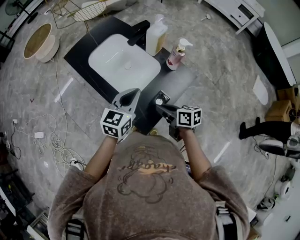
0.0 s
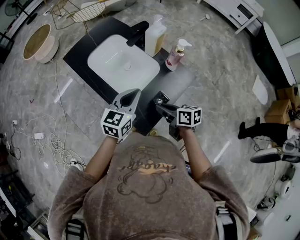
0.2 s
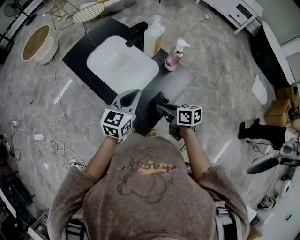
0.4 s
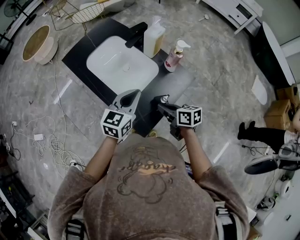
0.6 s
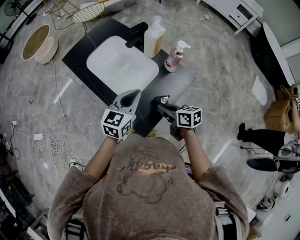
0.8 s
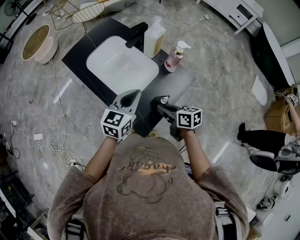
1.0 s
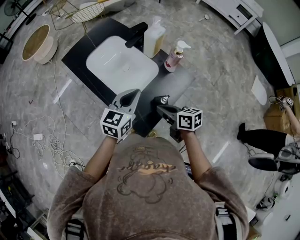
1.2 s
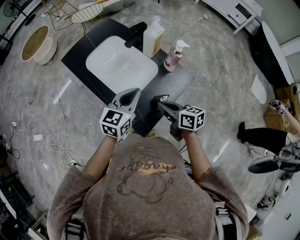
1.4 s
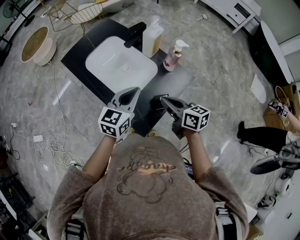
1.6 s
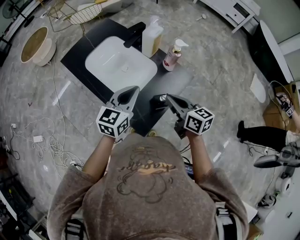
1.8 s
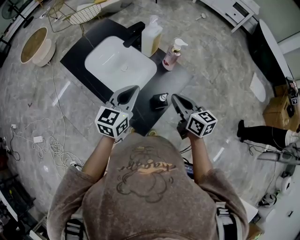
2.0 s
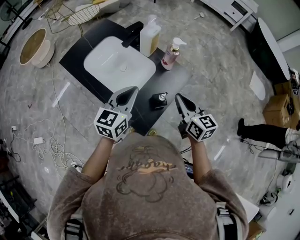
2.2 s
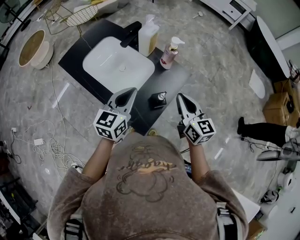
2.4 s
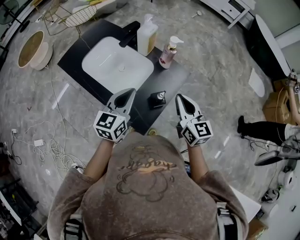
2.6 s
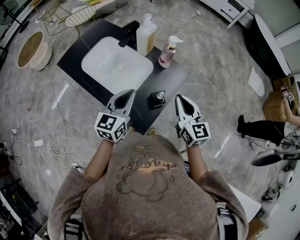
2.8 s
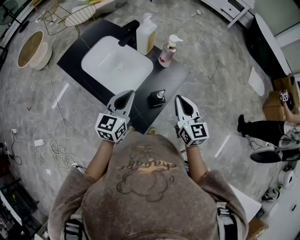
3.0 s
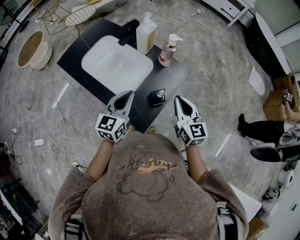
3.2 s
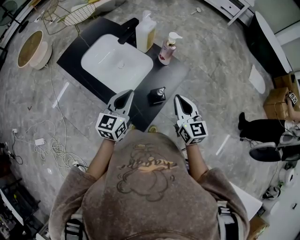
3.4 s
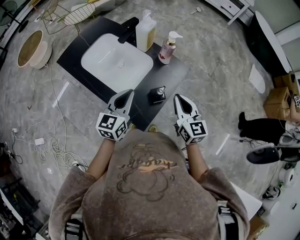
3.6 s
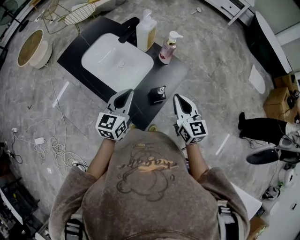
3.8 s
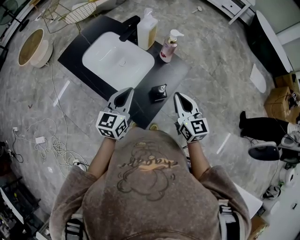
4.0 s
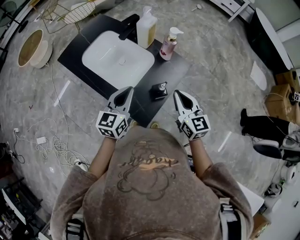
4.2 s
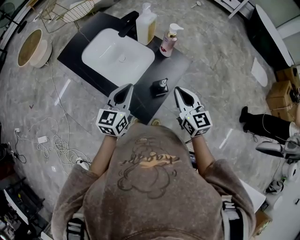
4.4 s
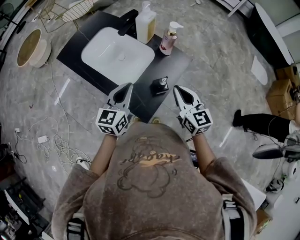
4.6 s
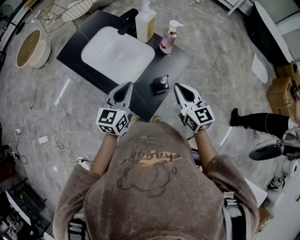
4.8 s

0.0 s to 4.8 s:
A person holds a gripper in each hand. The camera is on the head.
0.0 to 1.6 s: The right gripper travels upward by about 5 cm.
1.6 to 3.2 s: The right gripper heads to the right, covering approximately 5 cm, and swivels roughly 40 degrees.
3.2 to 4.8 s: The grippers stay close to where they were, moving slightly.

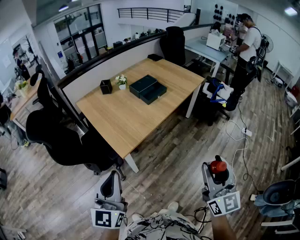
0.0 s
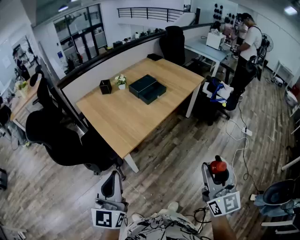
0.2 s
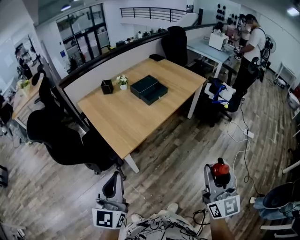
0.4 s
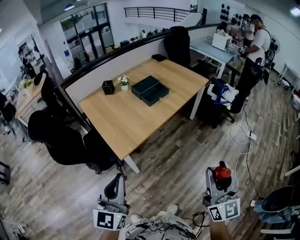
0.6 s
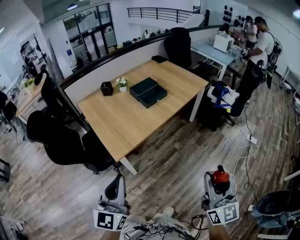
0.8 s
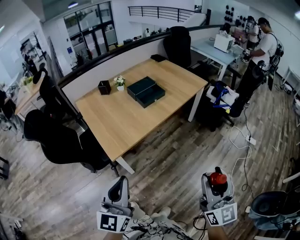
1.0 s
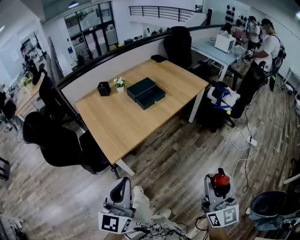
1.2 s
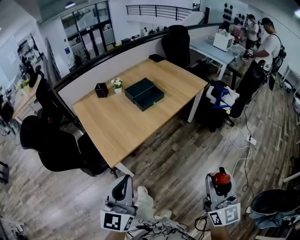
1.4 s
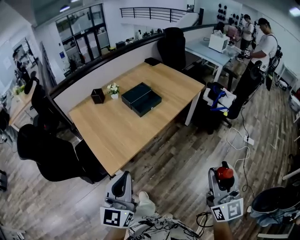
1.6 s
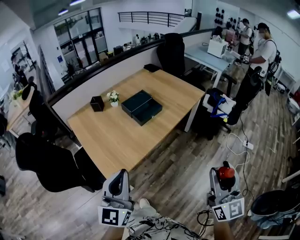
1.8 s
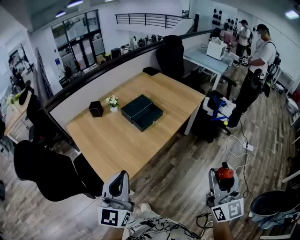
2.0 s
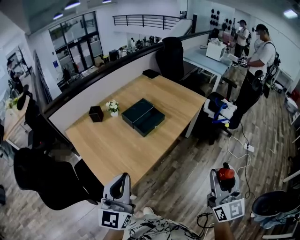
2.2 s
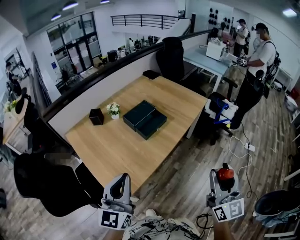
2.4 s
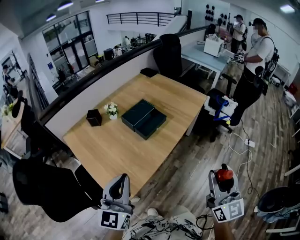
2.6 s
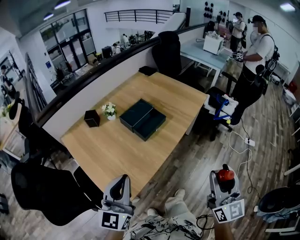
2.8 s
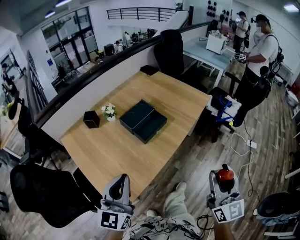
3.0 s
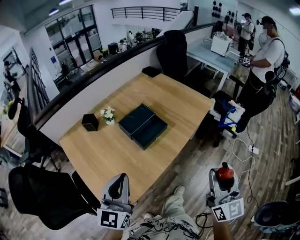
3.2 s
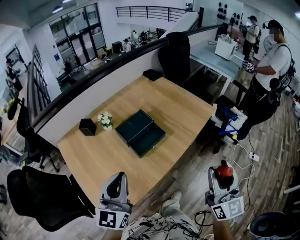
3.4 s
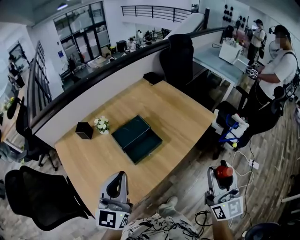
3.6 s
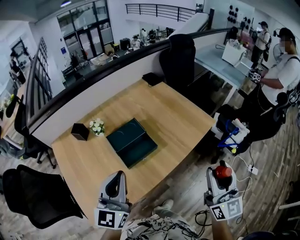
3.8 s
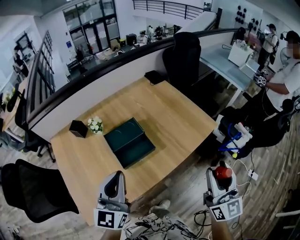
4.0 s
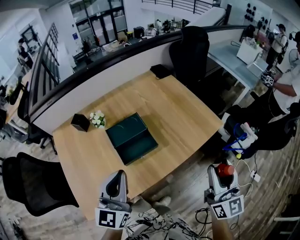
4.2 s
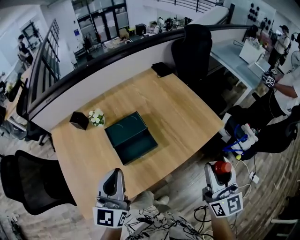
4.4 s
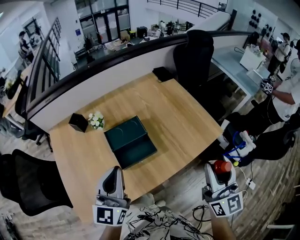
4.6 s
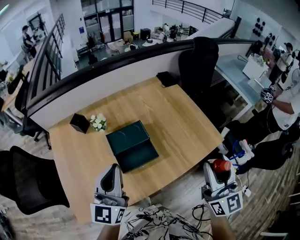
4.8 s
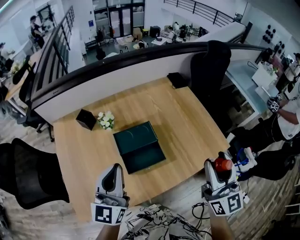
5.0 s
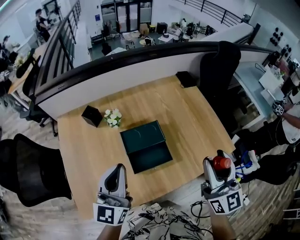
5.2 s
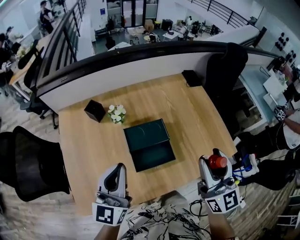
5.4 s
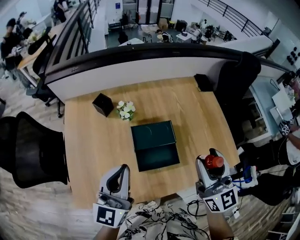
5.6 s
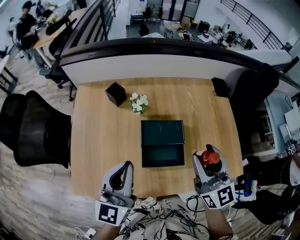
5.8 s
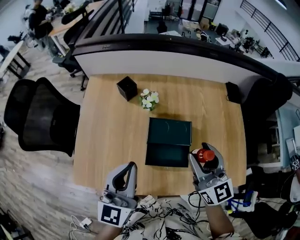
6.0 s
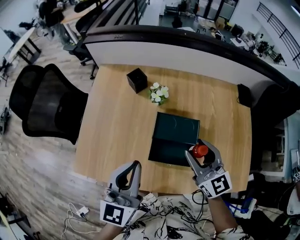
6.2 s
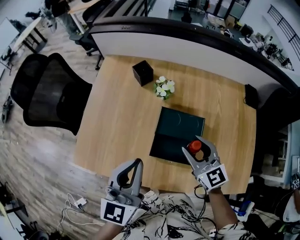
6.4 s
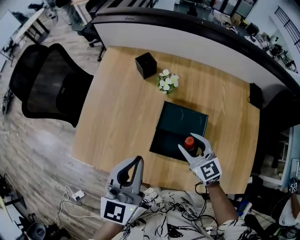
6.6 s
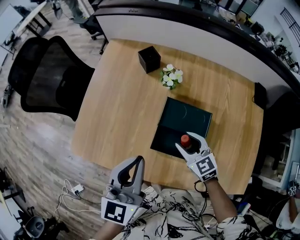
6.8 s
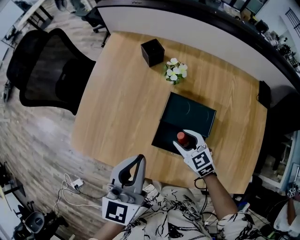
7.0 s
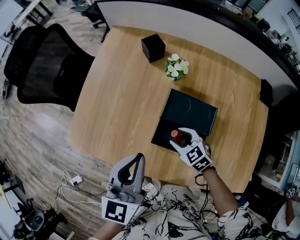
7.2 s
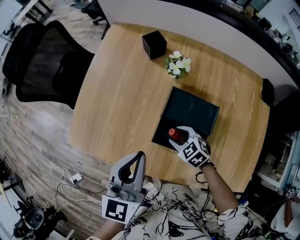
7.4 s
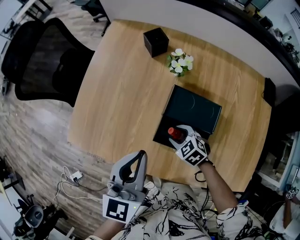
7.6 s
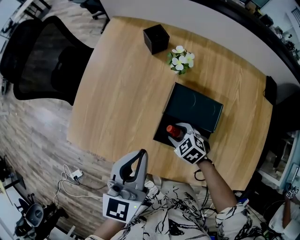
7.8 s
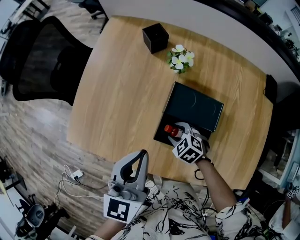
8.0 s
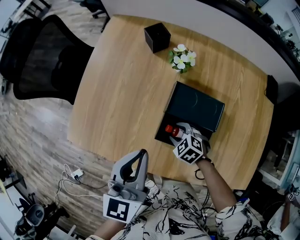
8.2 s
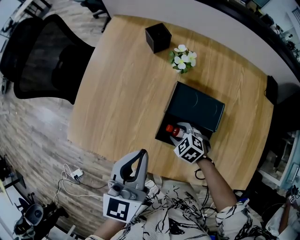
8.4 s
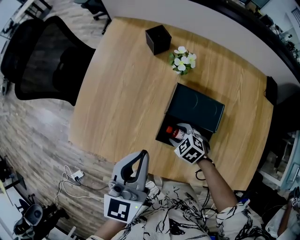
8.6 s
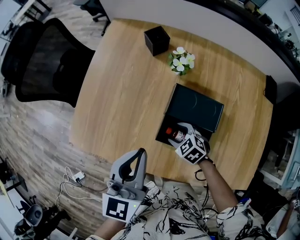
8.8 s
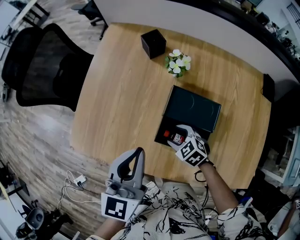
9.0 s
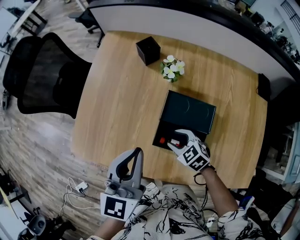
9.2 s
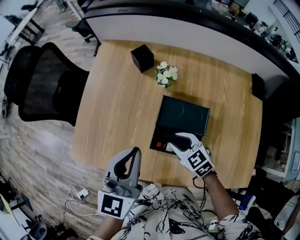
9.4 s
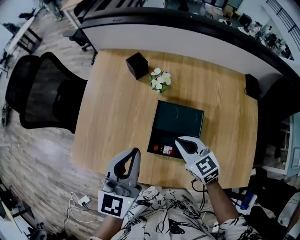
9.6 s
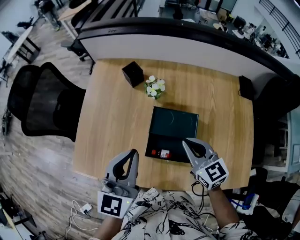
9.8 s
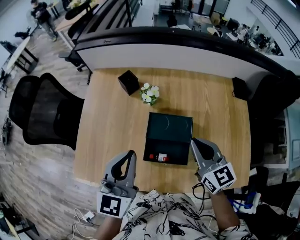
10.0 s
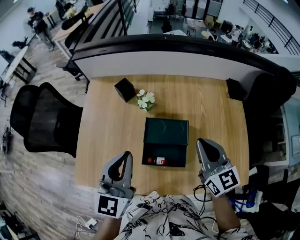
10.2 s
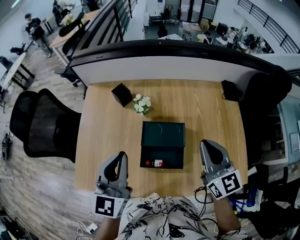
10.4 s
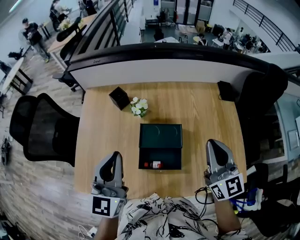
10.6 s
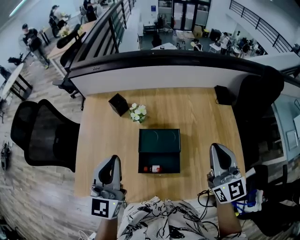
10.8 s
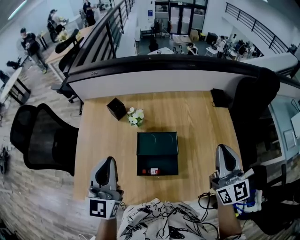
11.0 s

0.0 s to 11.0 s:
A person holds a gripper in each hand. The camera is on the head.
0.0 to 1.6 s: Both grippers travel together forward and to the right, roughly 15 cm.
1.6 to 3.2 s: The two grippers go about 25 cm forward.
3.2 to 4.8 s: The right gripper heads forward, covering roughly 30 cm, and turns by some 20 degrees. Meanwhile the left gripper heads forward and to the right, covering approximately 25 cm, and swivels about 20 degrees.
4.8 to 6.2 s: The left gripper changes place by about 10 cm, and swivels about 30 degrees. Meanwhile the right gripper moves approximately 35 cm, and swivels some 50 degrees.
6.2 to 7.8 s: The left gripper goes about 10 cm downward. Meanwhile the right gripper is displaced downward by roughly 30 cm, and angles its fingers downward, by some 50 degrees.
7.8 to 9.4 s: The left gripper shifts by approximately 5 cm, while the right gripper heads upward, covering approximately 10 cm, and rotates about 20 degrees.
9.4 to 11.0 s: The left gripper goes about 10 cm upward. The right gripper heads upward, covering some 30 cm, angles its fingers upward, by roughly 50 degrees, and closes up.

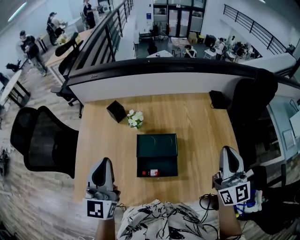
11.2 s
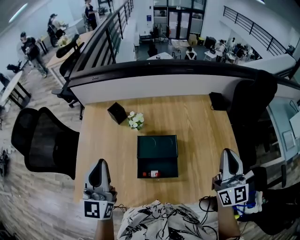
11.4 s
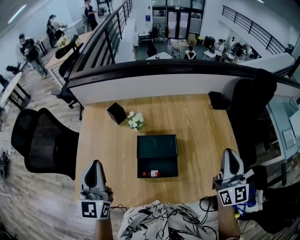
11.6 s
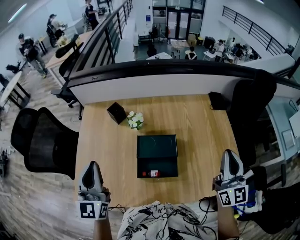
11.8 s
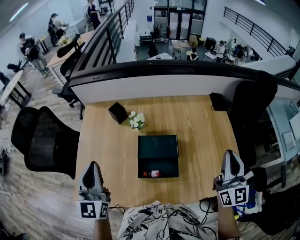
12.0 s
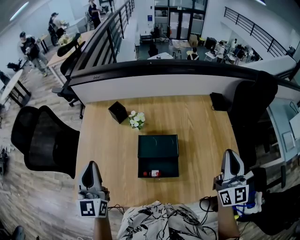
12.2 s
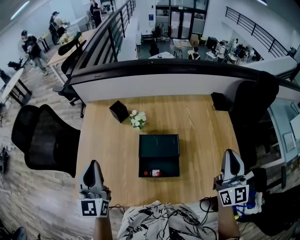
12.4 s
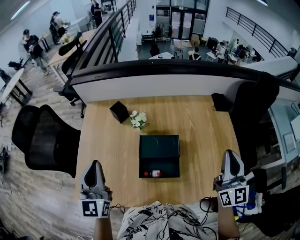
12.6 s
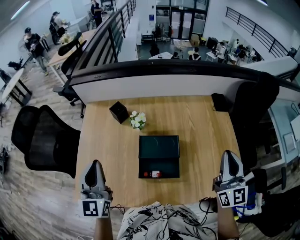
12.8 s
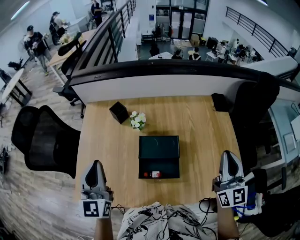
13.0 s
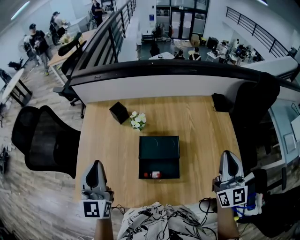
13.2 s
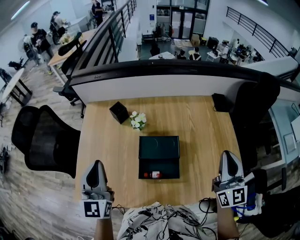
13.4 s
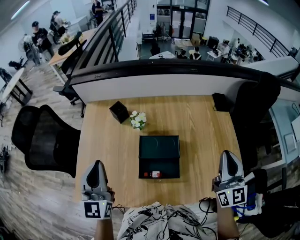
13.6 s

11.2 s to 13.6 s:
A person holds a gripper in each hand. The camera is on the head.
11.2 to 12.4 s: The left gripper shifts about 5 cm to the left.
12.4 to 13.6 s: The grippers move only a little.

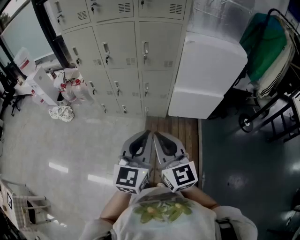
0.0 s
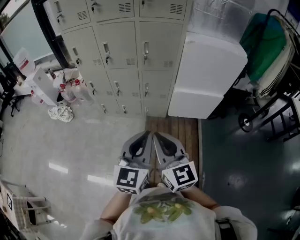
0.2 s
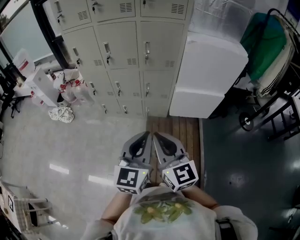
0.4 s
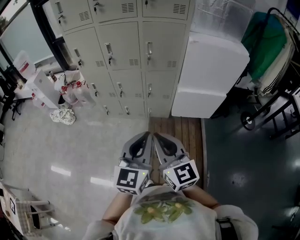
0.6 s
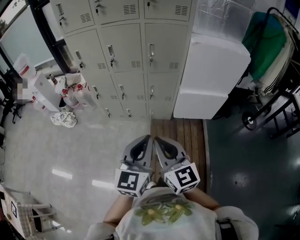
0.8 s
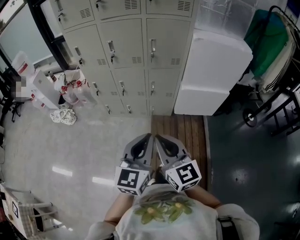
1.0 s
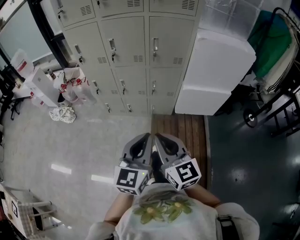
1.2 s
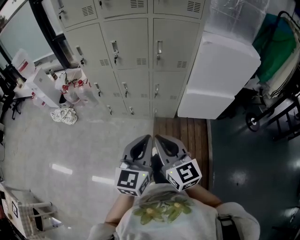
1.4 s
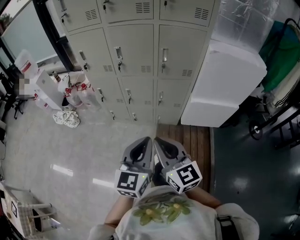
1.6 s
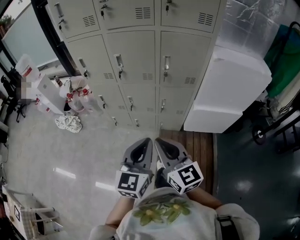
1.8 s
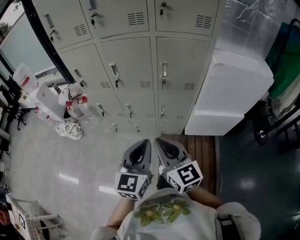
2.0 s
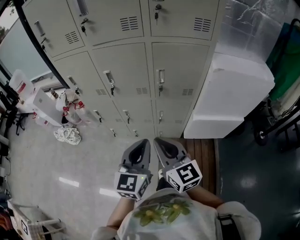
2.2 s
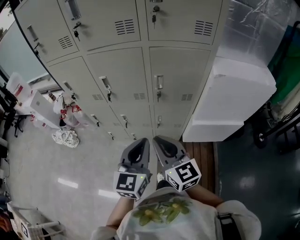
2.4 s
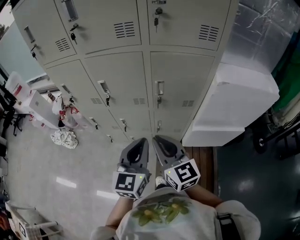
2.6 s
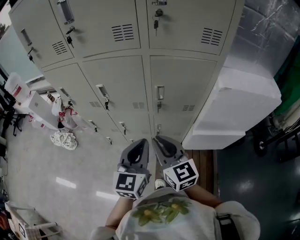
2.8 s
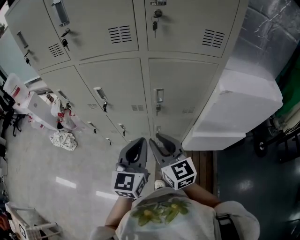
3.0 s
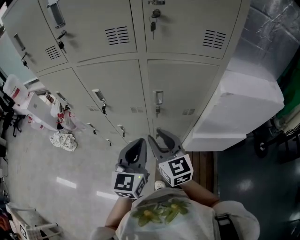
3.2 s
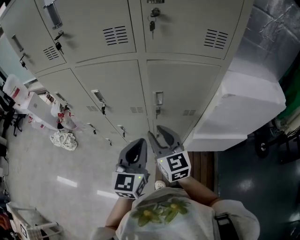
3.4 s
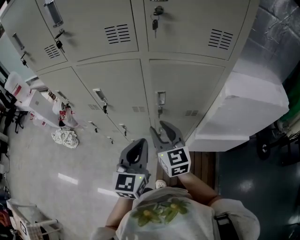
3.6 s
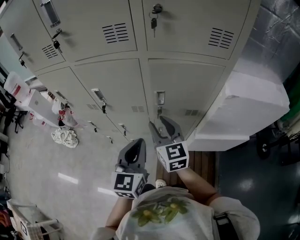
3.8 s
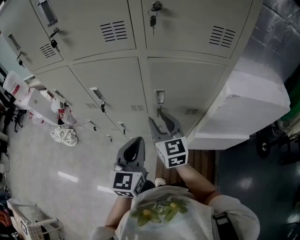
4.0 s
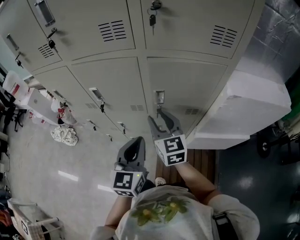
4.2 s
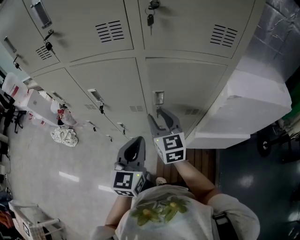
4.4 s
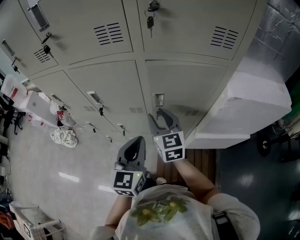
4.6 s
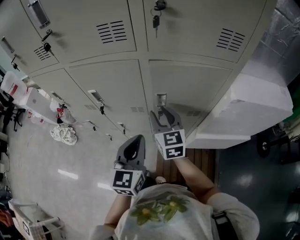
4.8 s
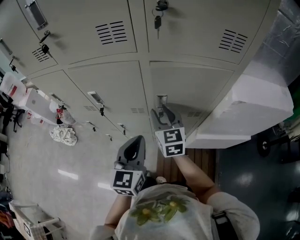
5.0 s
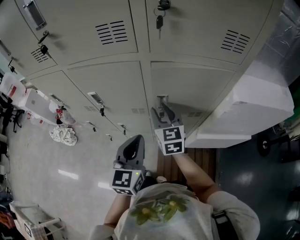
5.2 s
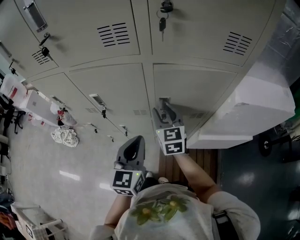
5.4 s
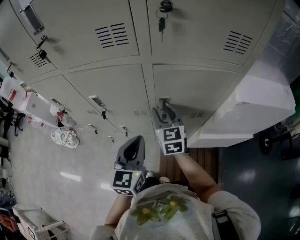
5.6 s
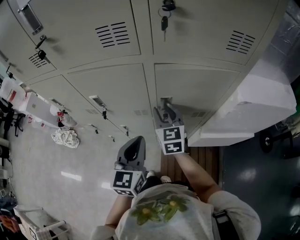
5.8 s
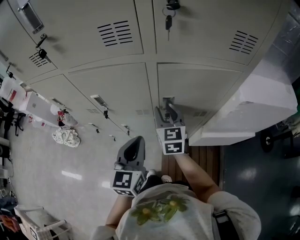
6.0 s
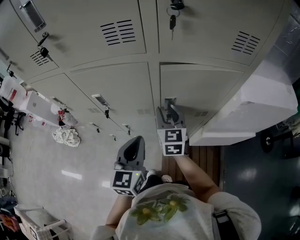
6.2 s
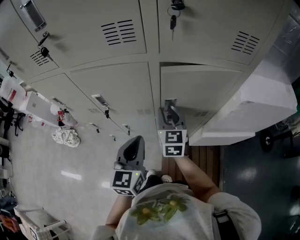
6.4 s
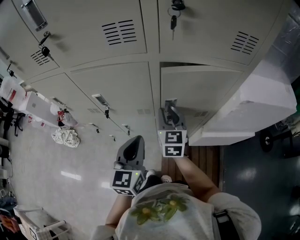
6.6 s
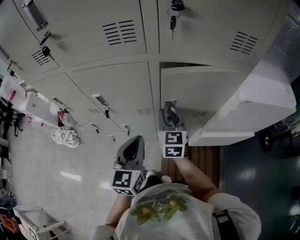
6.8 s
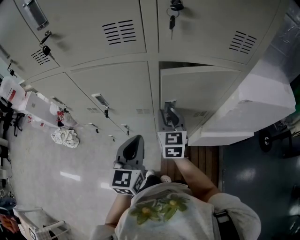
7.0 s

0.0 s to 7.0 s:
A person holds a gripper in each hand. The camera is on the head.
0.0 to 1.4 s: The two grippers go about 10 cm to the left, forward and downward.
1.4 to 2.8 s: Both grippers move forward, about 35 cm.
2.8 to 4.2 s: The right gripper shifts about 15 cm forward, and opens up, while the left gripper heads forward, covering approximately 5 cm.
4.2 to 5.6 s: The left gripper changes place by approximately 5 cm; the right gripper heads forward, covering about 10 cm.
5.6 to 7.0 s: The grippers stay close to where they were, moving slightly.
